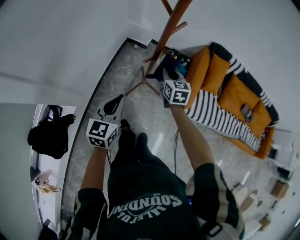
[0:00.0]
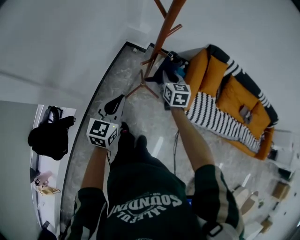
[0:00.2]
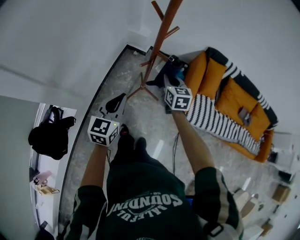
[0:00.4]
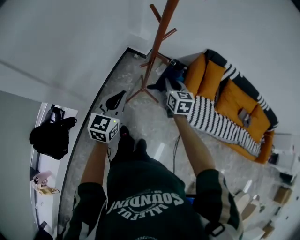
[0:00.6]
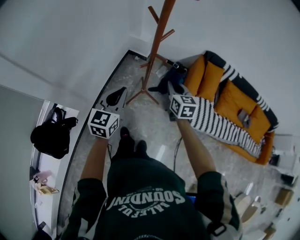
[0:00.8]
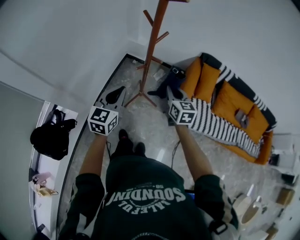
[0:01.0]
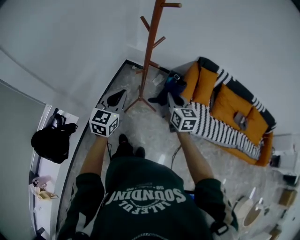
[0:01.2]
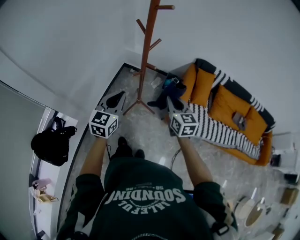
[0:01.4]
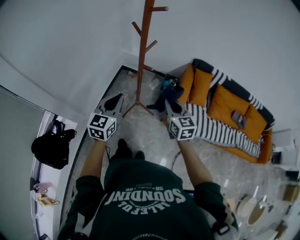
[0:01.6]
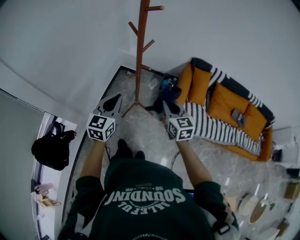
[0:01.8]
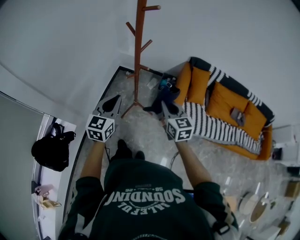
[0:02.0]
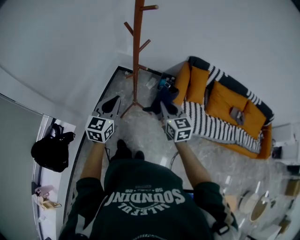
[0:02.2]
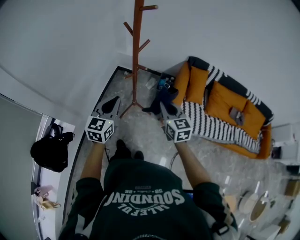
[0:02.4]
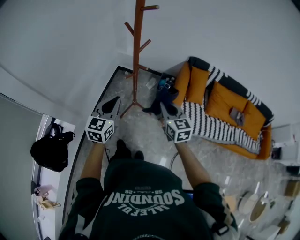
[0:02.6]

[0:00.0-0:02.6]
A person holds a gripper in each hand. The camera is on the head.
0.0 to 1.2 s: The left gripper heads upward and to the right, covering about 10 cm. The right gripper goes roughly 20 cm backward, upward and to the right.
1.2 to 2.6 s: The right gripper moves roughly 5 cm.

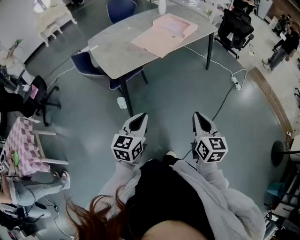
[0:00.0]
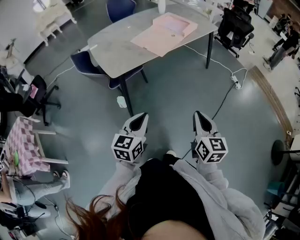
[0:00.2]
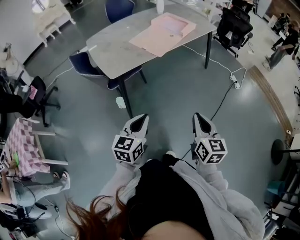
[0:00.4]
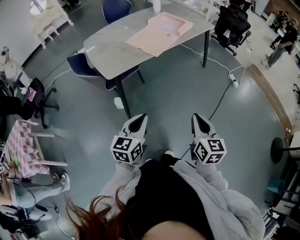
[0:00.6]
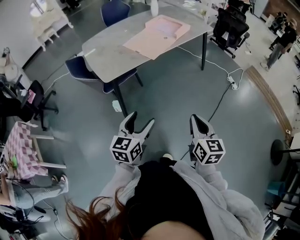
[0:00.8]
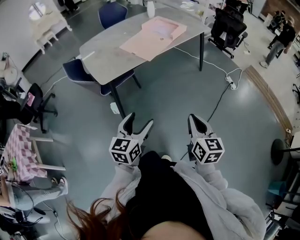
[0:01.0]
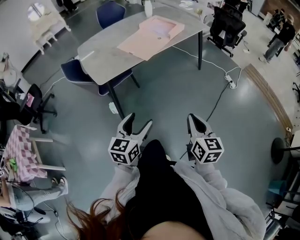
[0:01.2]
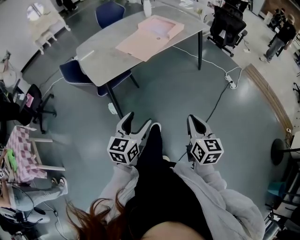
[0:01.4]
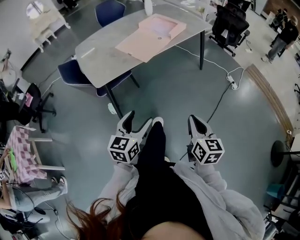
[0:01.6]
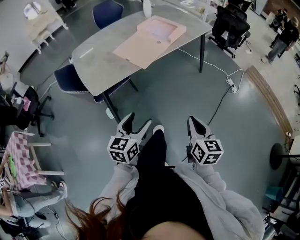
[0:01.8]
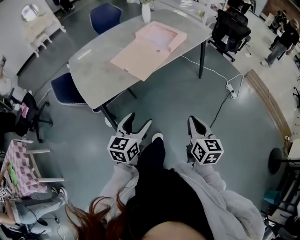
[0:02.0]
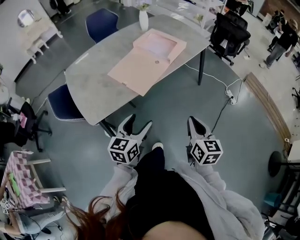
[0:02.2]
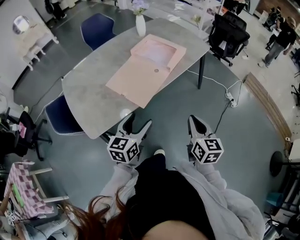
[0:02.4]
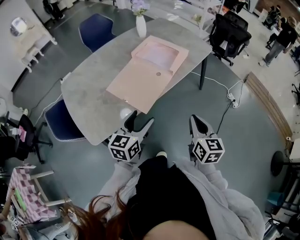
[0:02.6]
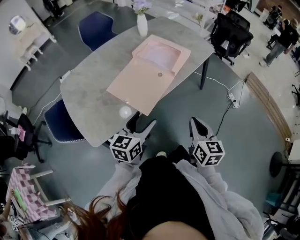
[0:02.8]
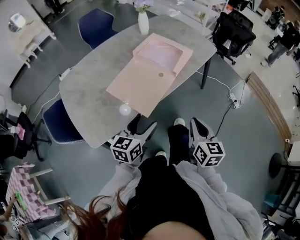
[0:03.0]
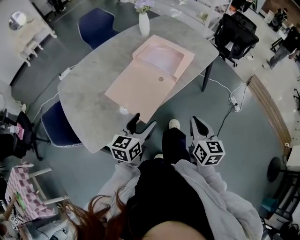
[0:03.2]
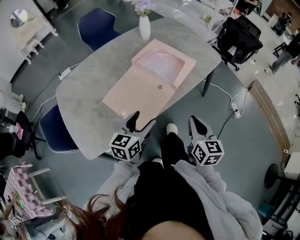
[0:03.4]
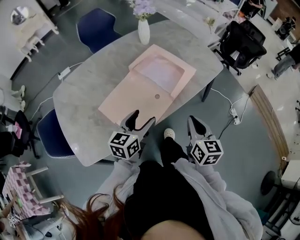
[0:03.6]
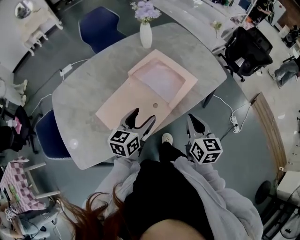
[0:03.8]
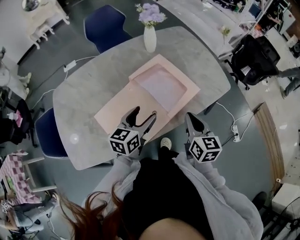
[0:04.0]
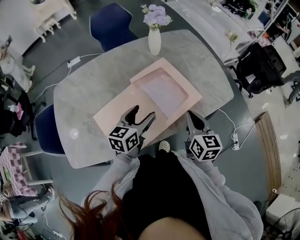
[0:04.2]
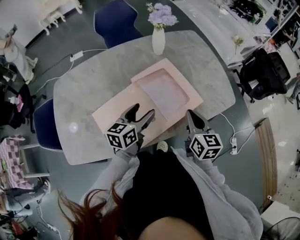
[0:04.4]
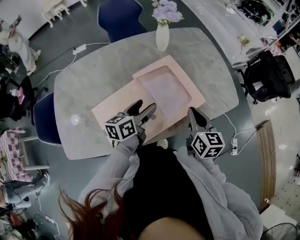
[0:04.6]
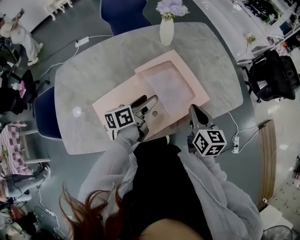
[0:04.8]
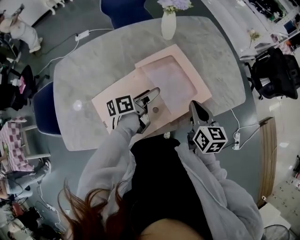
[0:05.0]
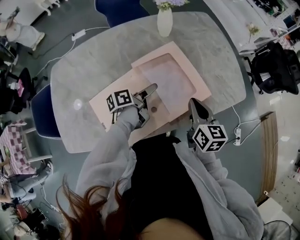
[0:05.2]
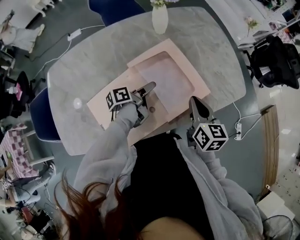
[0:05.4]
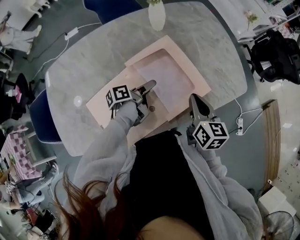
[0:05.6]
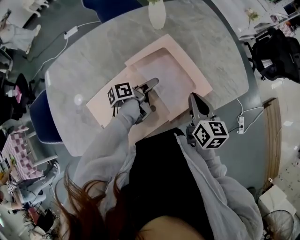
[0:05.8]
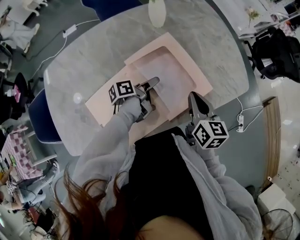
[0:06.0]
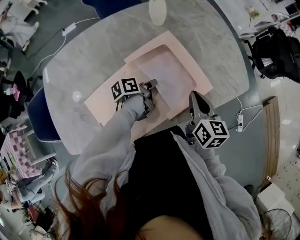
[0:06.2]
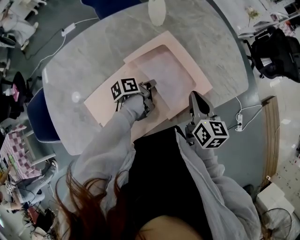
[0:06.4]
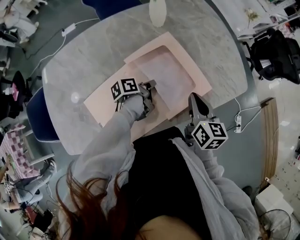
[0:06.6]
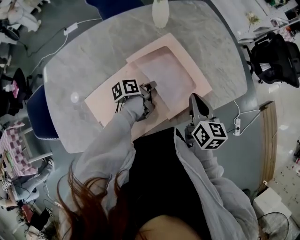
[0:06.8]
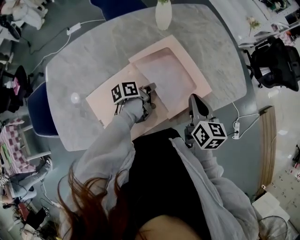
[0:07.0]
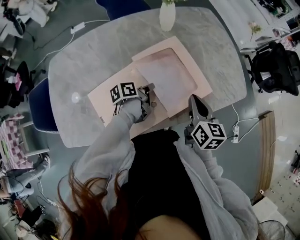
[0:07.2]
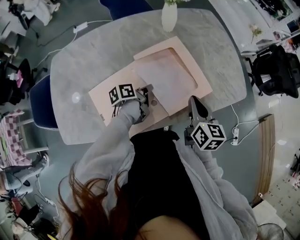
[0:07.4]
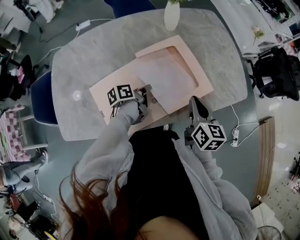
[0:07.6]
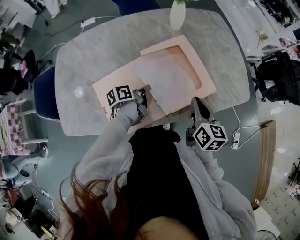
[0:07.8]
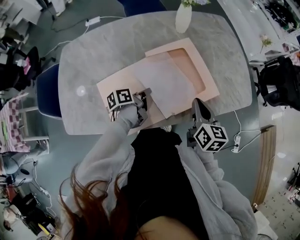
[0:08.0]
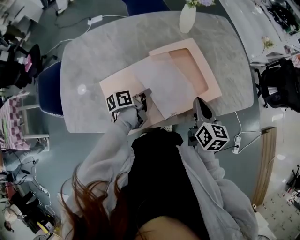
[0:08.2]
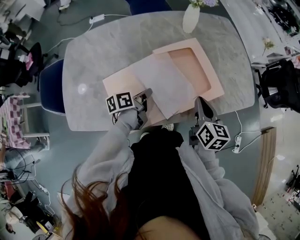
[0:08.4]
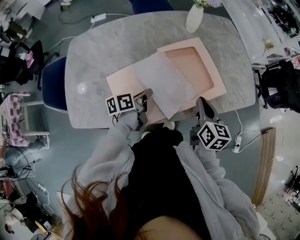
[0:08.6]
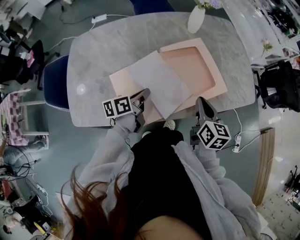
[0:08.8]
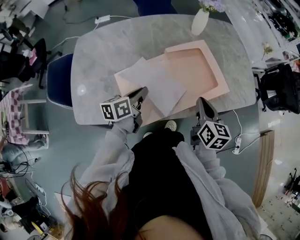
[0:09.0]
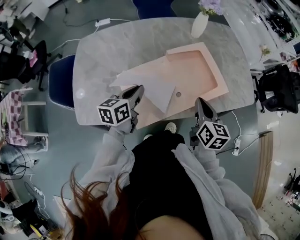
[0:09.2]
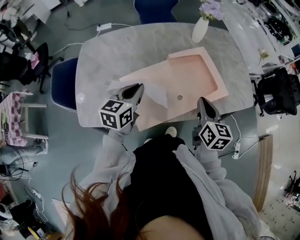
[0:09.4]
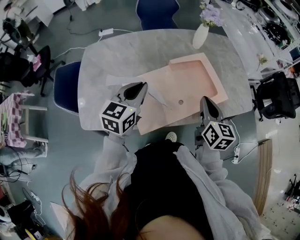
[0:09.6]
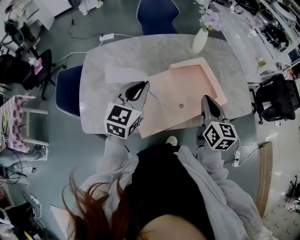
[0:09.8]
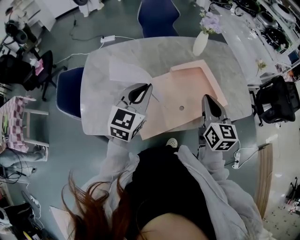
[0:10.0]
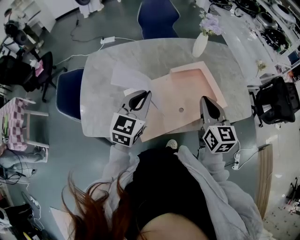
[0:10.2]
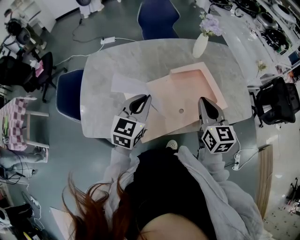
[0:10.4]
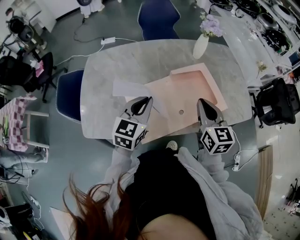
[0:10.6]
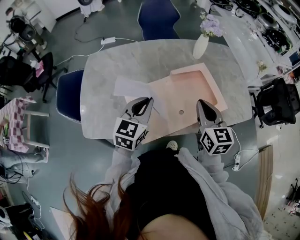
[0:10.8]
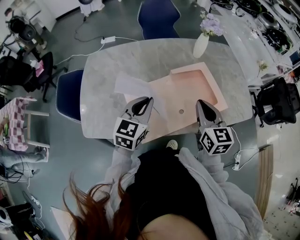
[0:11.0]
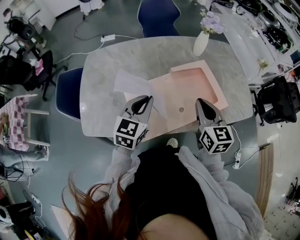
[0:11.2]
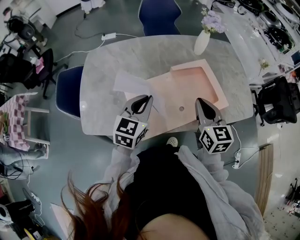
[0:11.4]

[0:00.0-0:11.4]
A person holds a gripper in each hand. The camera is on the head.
0.0 to 1.4 s: Both grippers travel together to the right, some 10 cm. The left gripper opens its fingers.
1.4 to 2.8 s: The grippers both shift forward by about 40 cm.
2.8 to 4.2 s: The grippers both shift forward by roughly 35 cm.
4.2 to 5.6 s: The right gripper moves forward and downward, about 10 cm. The left gripper shifts some 20 cm downward and forward, and rotates around the line of its fingers by some 60 degrees, counterclockwise from behind.
5.6 to 7.2 s: The left gripper closes its fingers.
7.2 to 8.6 s: The left gripper travels backward, to the left and upward by about 15 cm; the right gripper moves backward, roughly 5 cm.
8.6 to 10.0 s: The right gripper heads upward and to the left, covering approximately 15 cm, and swivels roughly 20 degrees. Meanwhile the left gripper moves upward, some 25 cm, and rotates around the line of its fingers by approximately 70 degrees, clockwise from behind.
10.0 to 11.4 s: The left gripper is displaced downward by some 5 cm.

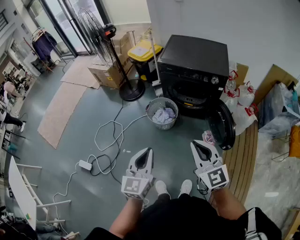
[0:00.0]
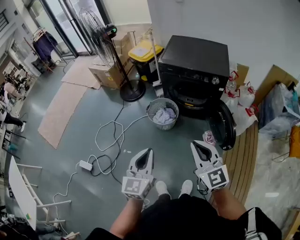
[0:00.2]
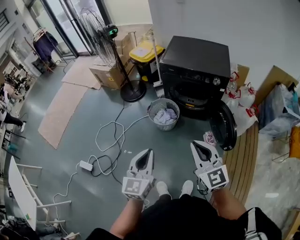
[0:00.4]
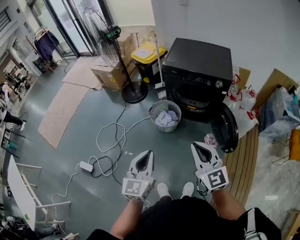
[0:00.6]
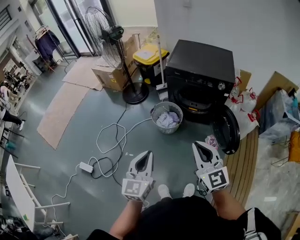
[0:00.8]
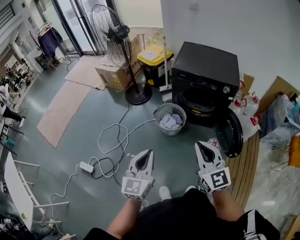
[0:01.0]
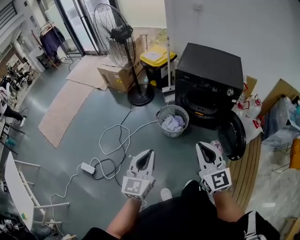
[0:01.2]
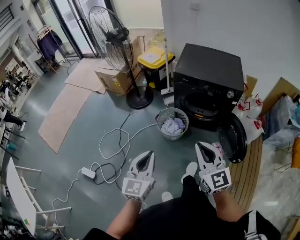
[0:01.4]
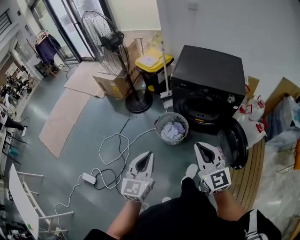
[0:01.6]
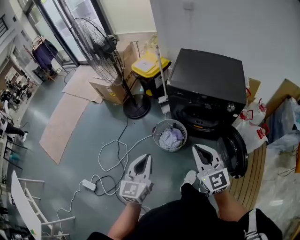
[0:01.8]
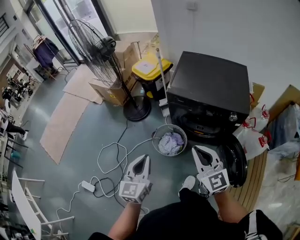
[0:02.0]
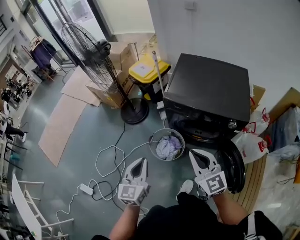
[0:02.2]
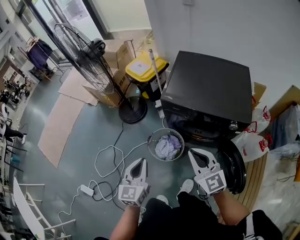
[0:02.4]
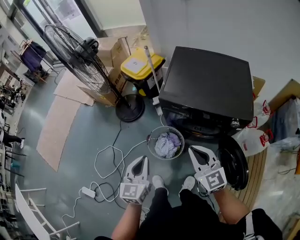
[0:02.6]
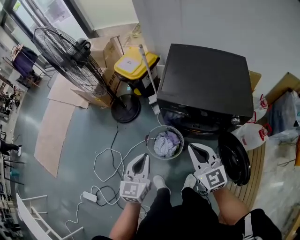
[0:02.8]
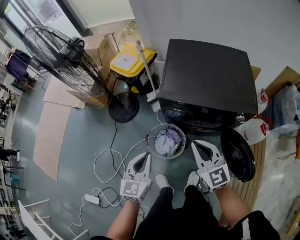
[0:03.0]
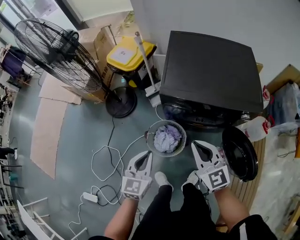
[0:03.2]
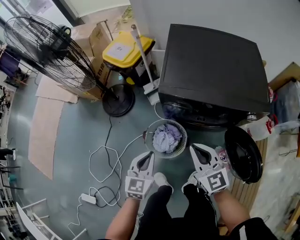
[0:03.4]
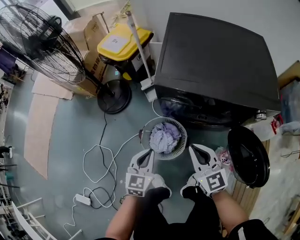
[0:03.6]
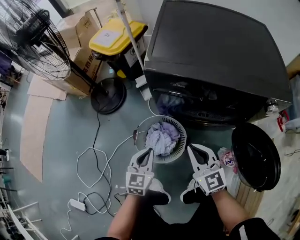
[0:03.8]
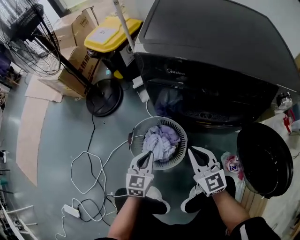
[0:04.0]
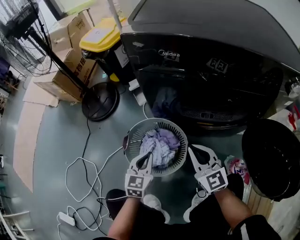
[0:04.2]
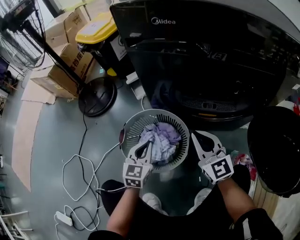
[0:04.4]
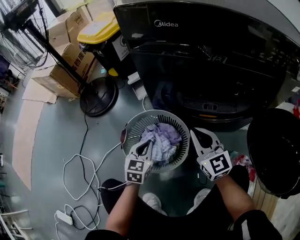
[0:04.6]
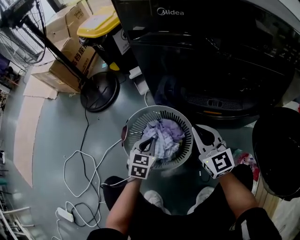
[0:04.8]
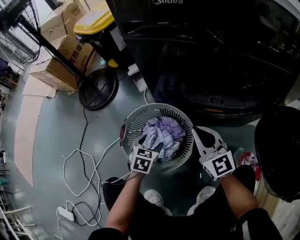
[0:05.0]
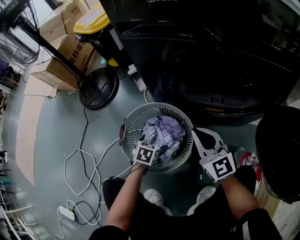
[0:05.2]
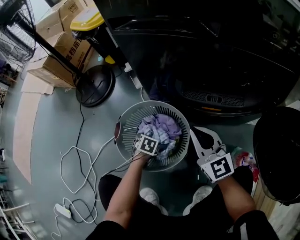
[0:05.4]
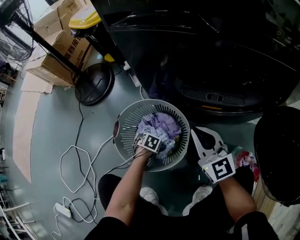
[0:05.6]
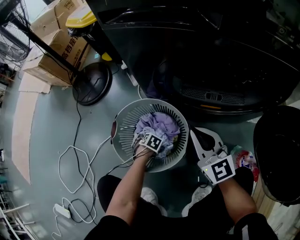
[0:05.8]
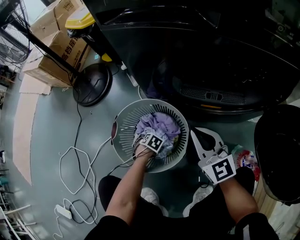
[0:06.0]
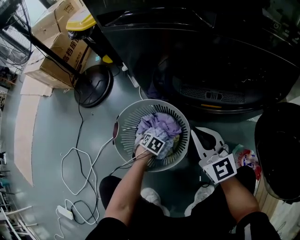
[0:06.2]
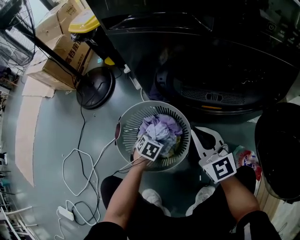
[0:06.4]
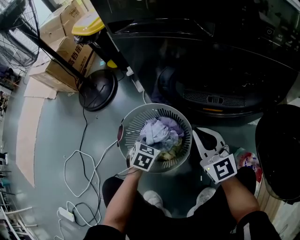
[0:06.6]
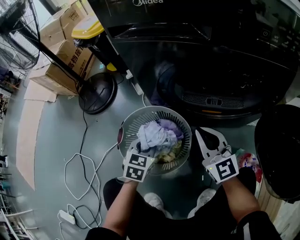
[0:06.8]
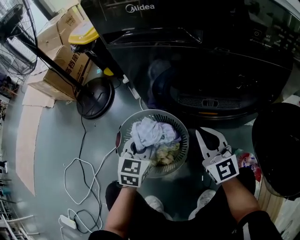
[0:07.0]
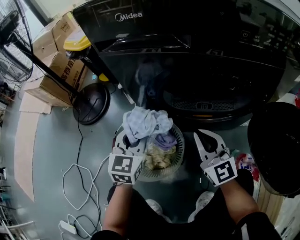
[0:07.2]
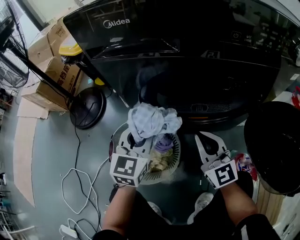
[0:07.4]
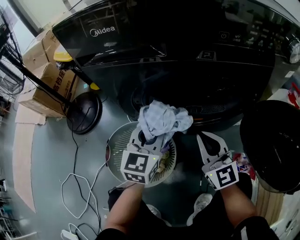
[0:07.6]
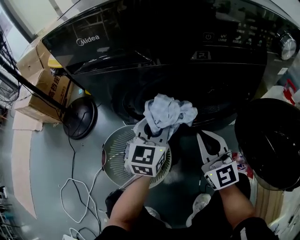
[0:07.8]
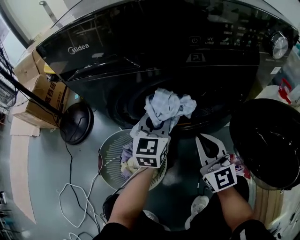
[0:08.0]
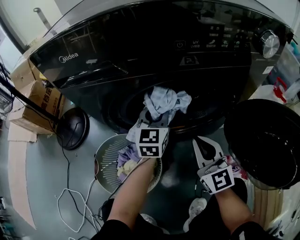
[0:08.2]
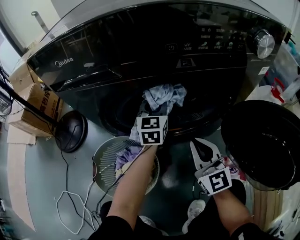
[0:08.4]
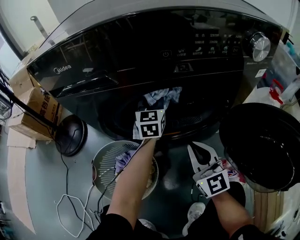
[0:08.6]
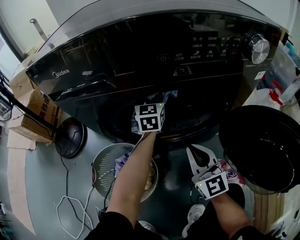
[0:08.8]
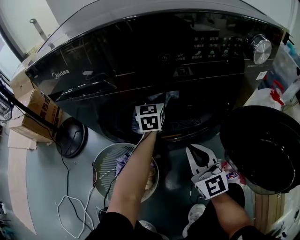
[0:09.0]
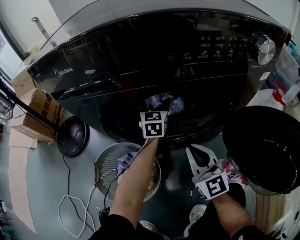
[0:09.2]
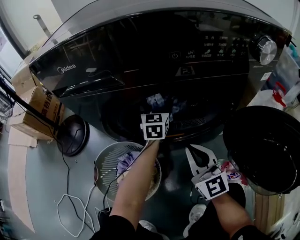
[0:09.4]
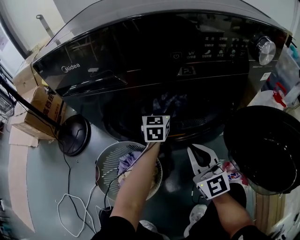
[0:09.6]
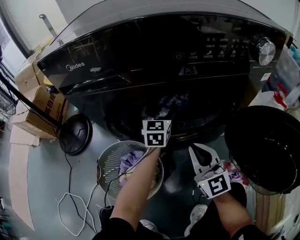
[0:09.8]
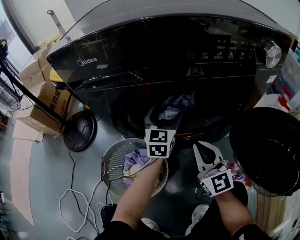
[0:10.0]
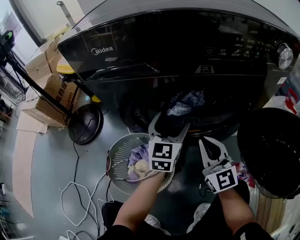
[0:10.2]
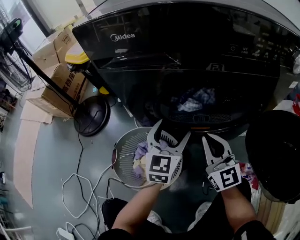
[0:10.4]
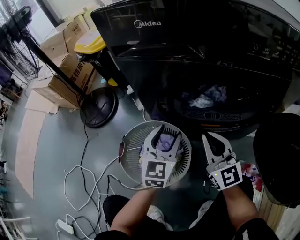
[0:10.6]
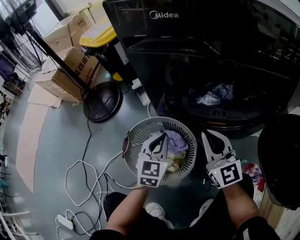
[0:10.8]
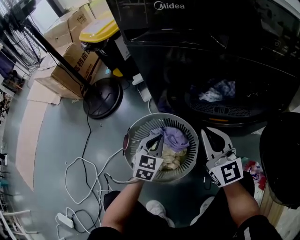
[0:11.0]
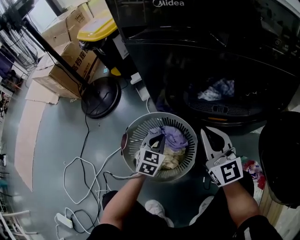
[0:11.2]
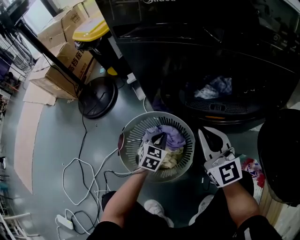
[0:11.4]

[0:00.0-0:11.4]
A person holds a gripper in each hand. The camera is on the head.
0.0 to 1.4 s: The right gripper is displaced forward and to the left by some 10 cm, while the left gripper goes some 10 cm to the left and forward.
1.4 to 2.8 s: The two grippers go about 35 cm forward.
2.8 to 4.2 s: Both grippers travel together downward, roughly 50 cm.
4.2 to 5.6 s: The left gripper heads downward, covering approximately 30 cm, tips its fingers downward by about 50 degrees, and opens its fingers. Meanwhile the right gripper shifts about 5 cm downward.
5.6 to 7.2 s: The left gripper moves upward, some 35 cm, angles its fingers upward, by some 60 degrees, and closes. The right gripper ends up some 5 cm from where it was.
7.2 to 8.6 s: The left gripper travels to the right and forward by some 30 cm; the right gripper is displaced to the right by approximately 10 cm.
8.6 to 10.0 s: The left gripper goes approximately 5 cm backward, and opens.
10.0 to 11.4 s: The right gripper shifts roughly 10 cm to the left. Meanwhile the left gripper is displaced downward, to the left and backward by about 30 cm, rotates about 30 degrees, and closes.
